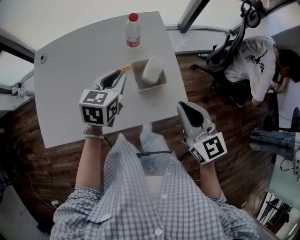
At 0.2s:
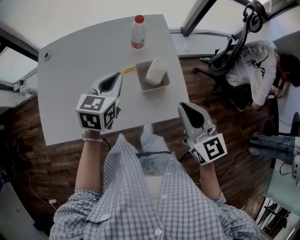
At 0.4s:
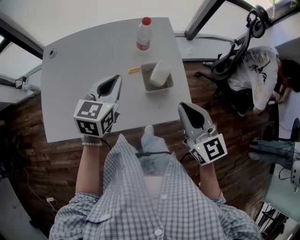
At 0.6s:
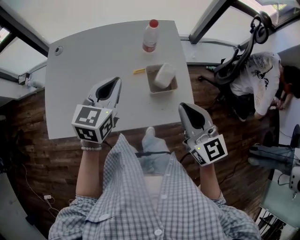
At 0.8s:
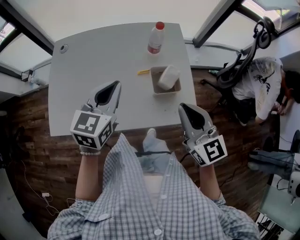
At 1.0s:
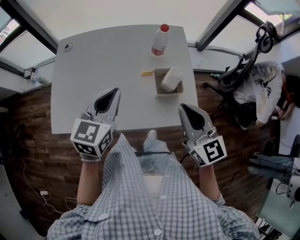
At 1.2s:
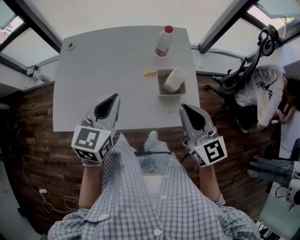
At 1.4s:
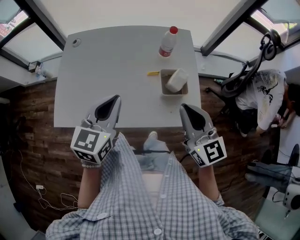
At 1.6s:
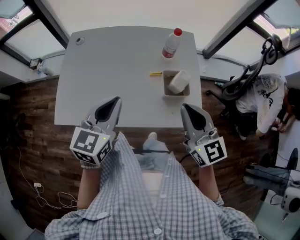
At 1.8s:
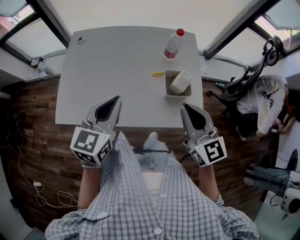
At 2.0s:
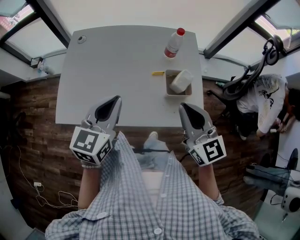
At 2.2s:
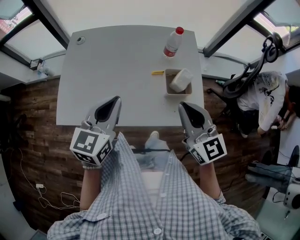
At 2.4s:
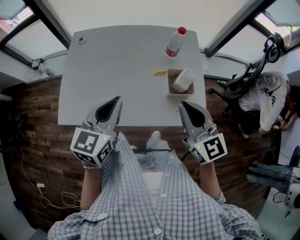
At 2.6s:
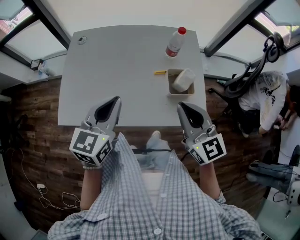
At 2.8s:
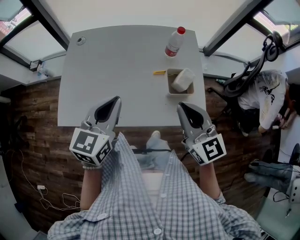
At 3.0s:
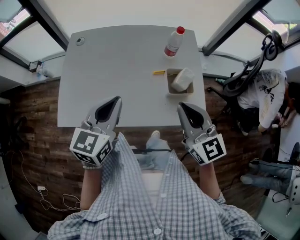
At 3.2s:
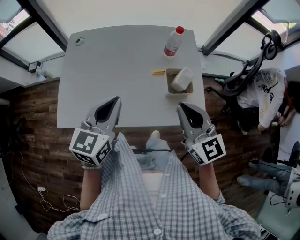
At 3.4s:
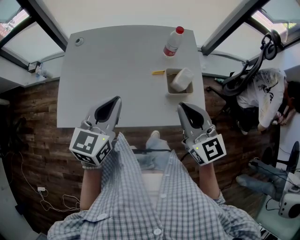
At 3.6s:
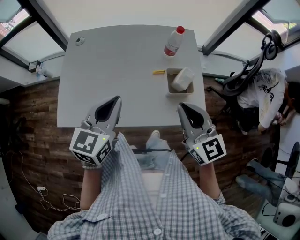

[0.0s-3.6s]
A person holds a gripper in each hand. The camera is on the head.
0.0s to 1.8s: The right gripper shifts about 10 cm to the left, while the left gripper travels to the left, backward and upward by roughly 20 cm.
1.8s to 3.6s: There are only small adjustments of the grippers.

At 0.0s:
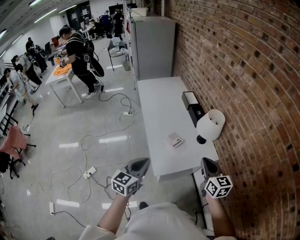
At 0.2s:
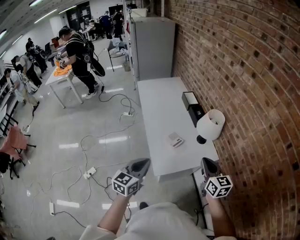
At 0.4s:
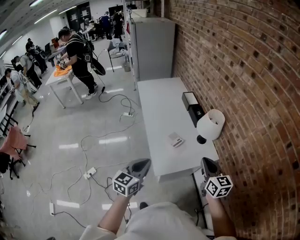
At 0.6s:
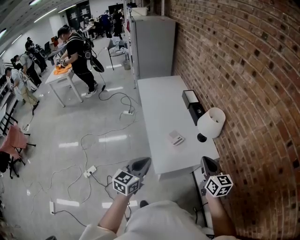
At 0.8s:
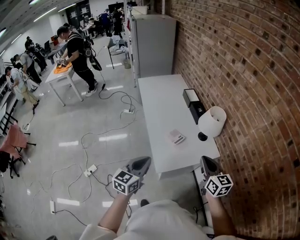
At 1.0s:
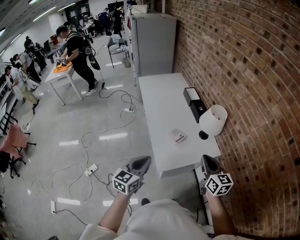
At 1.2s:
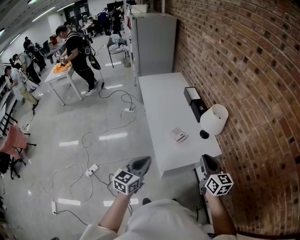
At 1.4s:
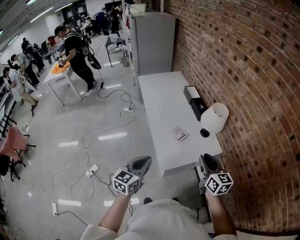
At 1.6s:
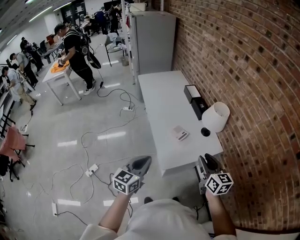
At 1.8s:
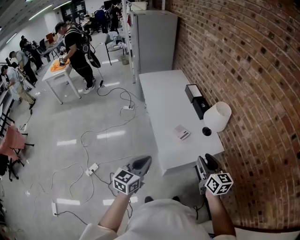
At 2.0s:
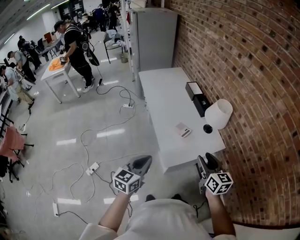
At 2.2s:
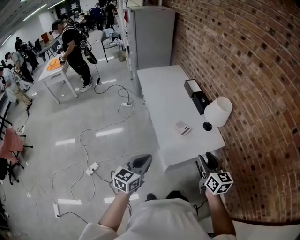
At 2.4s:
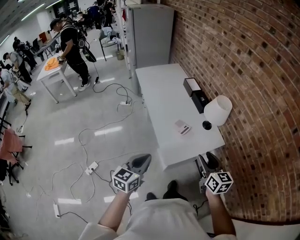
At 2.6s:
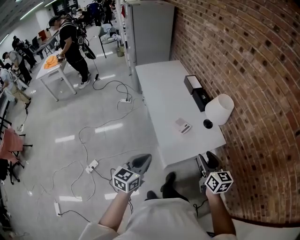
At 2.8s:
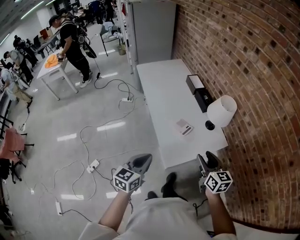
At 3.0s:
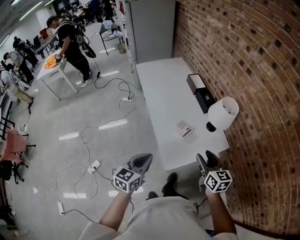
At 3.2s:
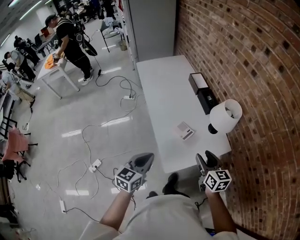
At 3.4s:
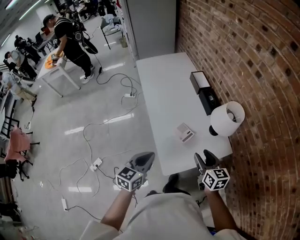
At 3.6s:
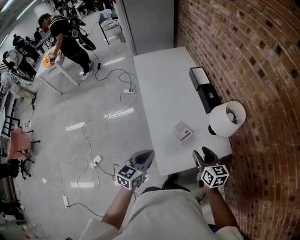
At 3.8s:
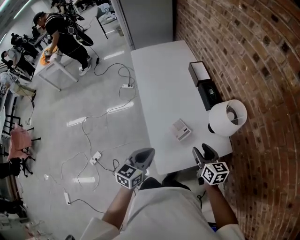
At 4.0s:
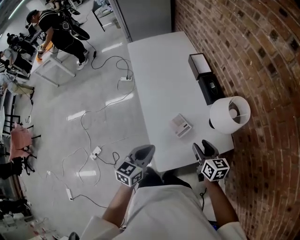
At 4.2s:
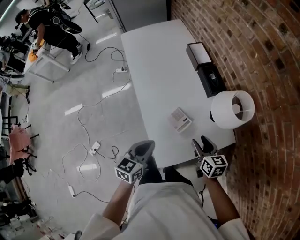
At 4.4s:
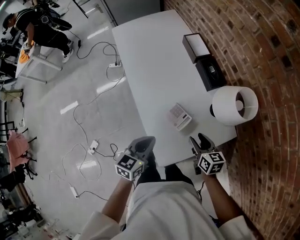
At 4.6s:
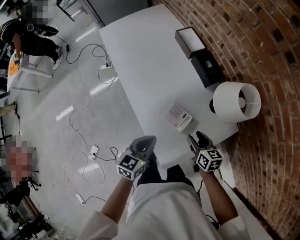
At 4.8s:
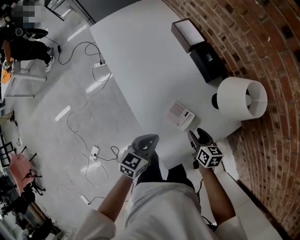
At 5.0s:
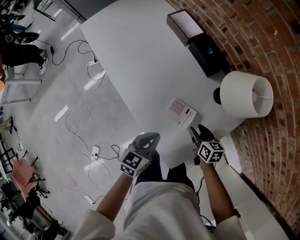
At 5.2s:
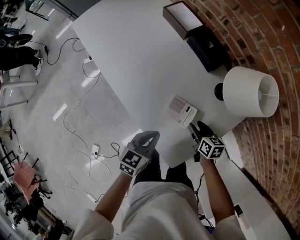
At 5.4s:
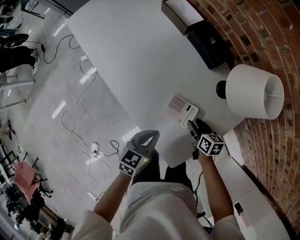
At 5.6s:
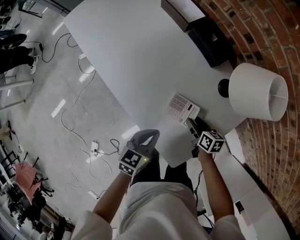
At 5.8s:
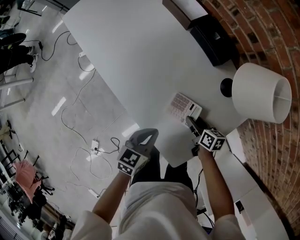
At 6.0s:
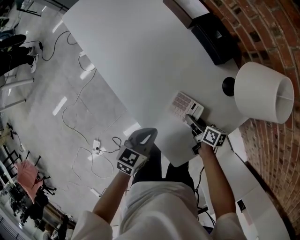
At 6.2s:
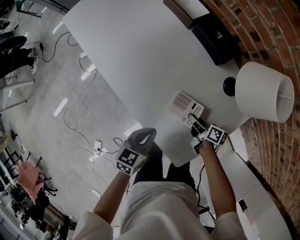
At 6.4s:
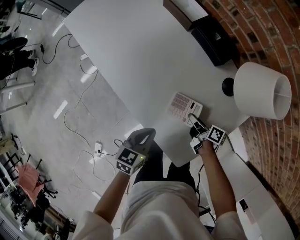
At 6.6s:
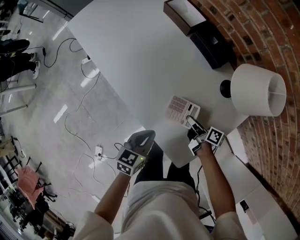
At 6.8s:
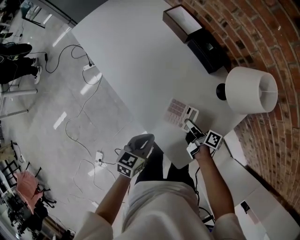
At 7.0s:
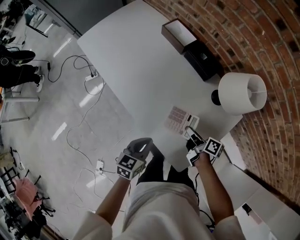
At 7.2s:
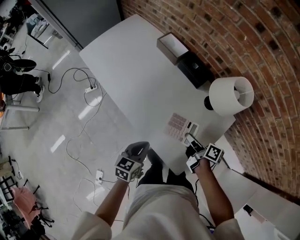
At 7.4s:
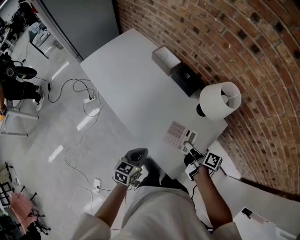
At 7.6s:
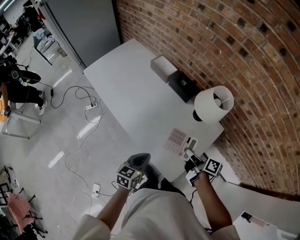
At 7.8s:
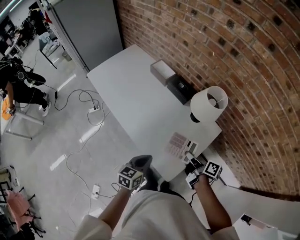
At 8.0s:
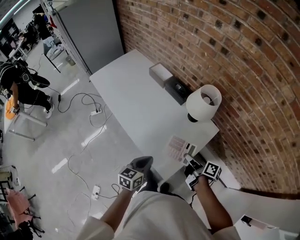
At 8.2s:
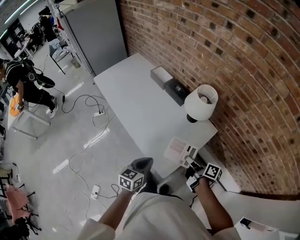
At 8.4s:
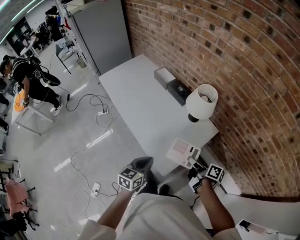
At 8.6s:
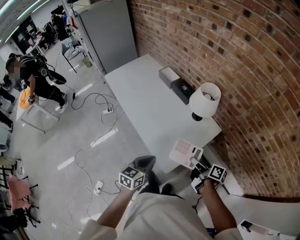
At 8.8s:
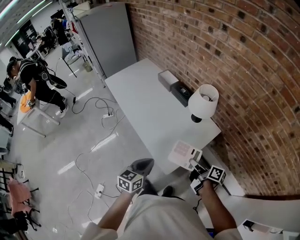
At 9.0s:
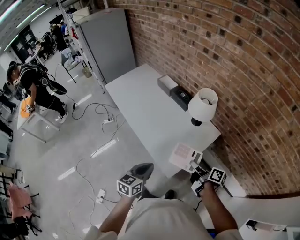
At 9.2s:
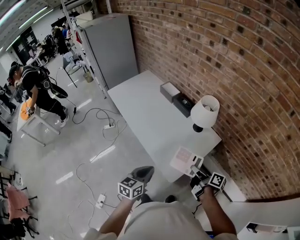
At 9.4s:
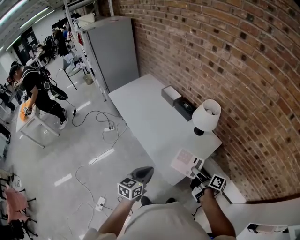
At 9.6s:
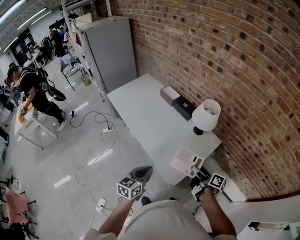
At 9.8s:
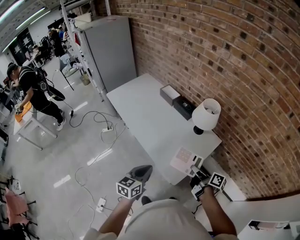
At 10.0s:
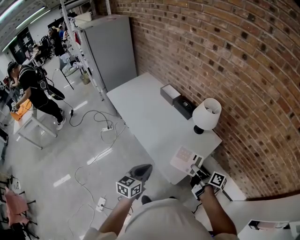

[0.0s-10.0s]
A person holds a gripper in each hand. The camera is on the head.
0.0s to 1.4s: The right gripper moves approximately 5 cm, and opens its fingers, while the left gripper shifts by about 5 cm.
1.4s to 2.8s: The left gripper moves about 5 cm. Meanwhile the right gripper is displaced downward by roughly 5 cm, and opens its fingers.
2.8s to 4.2s: Both grippers move forward and downward, roughly 25 cm.
4.2s to 5.8s: The right gripper moves downward, some 25 cm, and rotates approximately 40 degrees. The left gripper moves downward and forward, about 20 cm, and swivels about 30 degrees.
5.8s to 7.2s: The right gripper is displaced upward by about 20 cm, swivels roughly 30 degrees, and closes up, while the left gripper travels upward and to the left by roughly 10 cm.
7.2s to 8.6s: The left gripper travels backward, upward and to the right by roughly 25 cm. The right gripper heads backward, to the right and upward, covering roughly 30 cm.
8.6s to 10.0s: The grippers both shift to the left by about 10 cm.

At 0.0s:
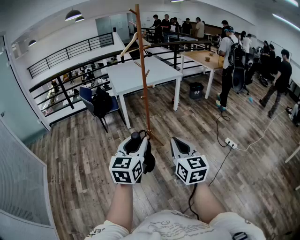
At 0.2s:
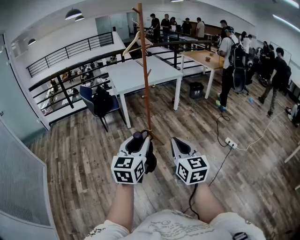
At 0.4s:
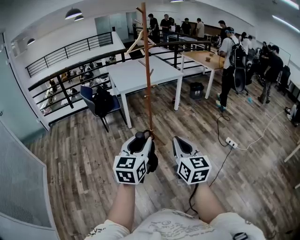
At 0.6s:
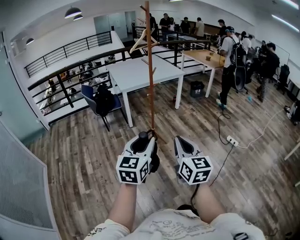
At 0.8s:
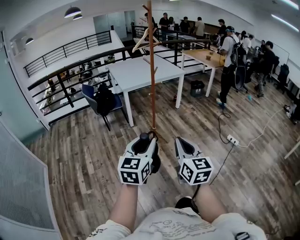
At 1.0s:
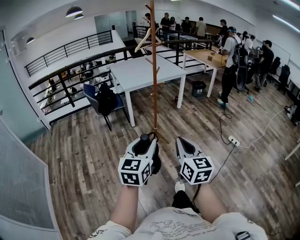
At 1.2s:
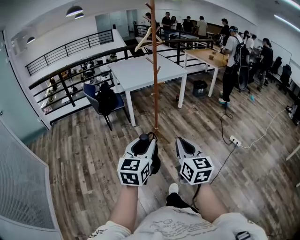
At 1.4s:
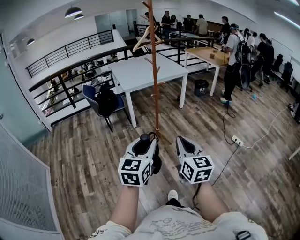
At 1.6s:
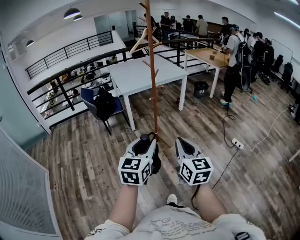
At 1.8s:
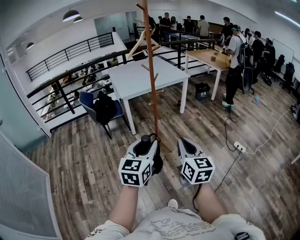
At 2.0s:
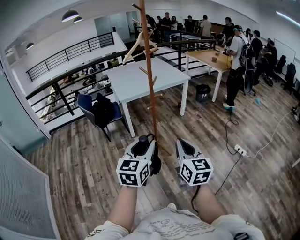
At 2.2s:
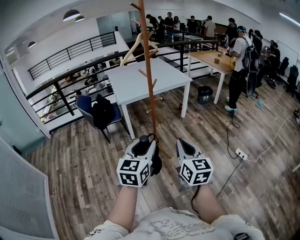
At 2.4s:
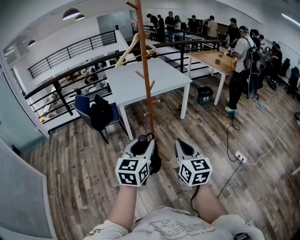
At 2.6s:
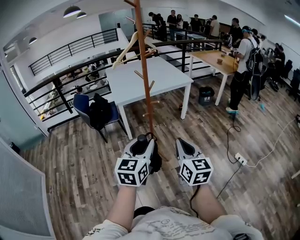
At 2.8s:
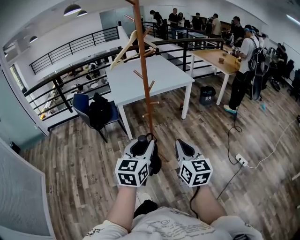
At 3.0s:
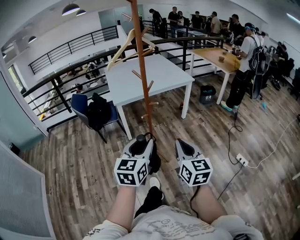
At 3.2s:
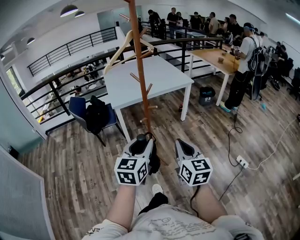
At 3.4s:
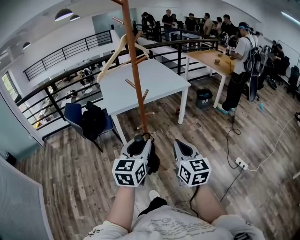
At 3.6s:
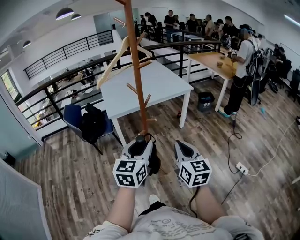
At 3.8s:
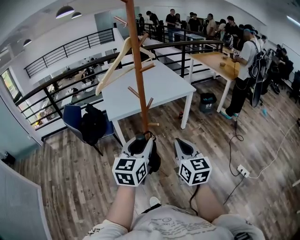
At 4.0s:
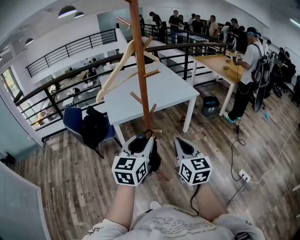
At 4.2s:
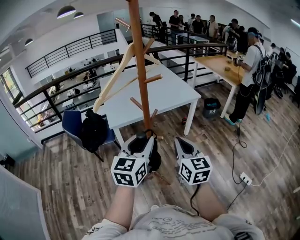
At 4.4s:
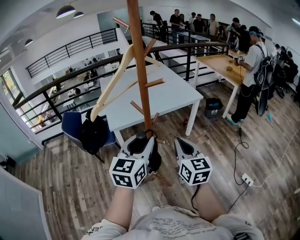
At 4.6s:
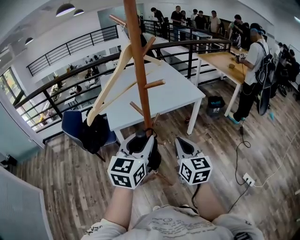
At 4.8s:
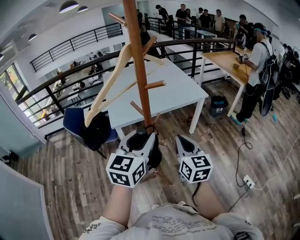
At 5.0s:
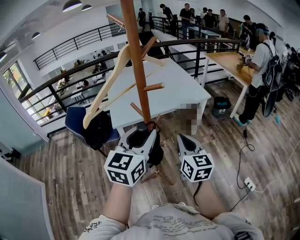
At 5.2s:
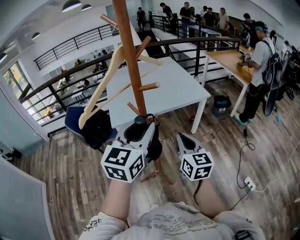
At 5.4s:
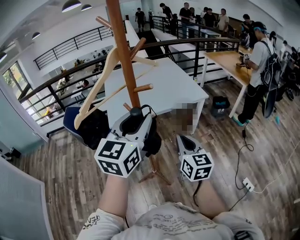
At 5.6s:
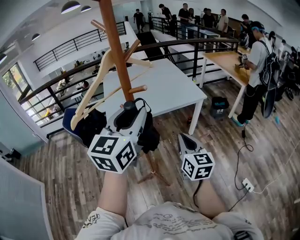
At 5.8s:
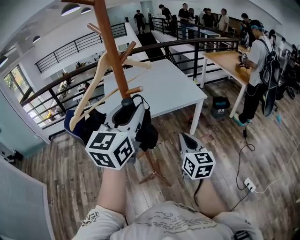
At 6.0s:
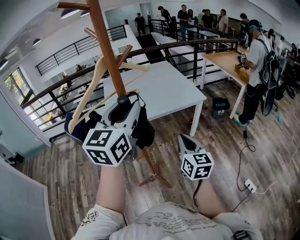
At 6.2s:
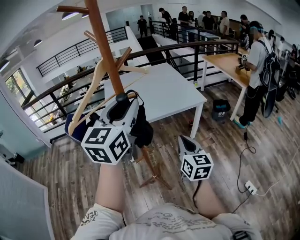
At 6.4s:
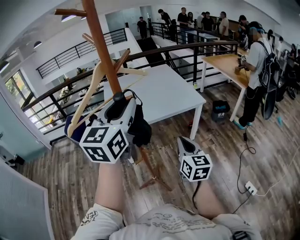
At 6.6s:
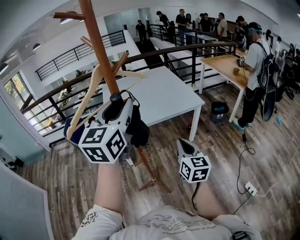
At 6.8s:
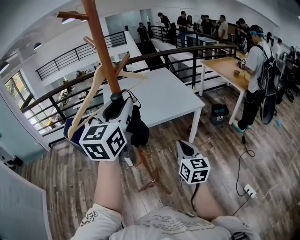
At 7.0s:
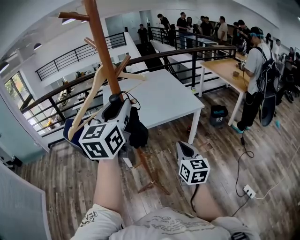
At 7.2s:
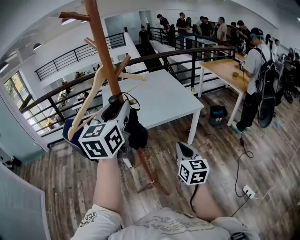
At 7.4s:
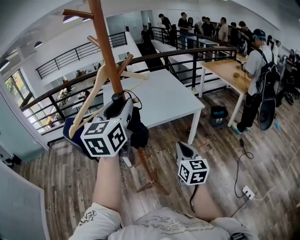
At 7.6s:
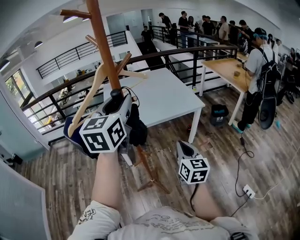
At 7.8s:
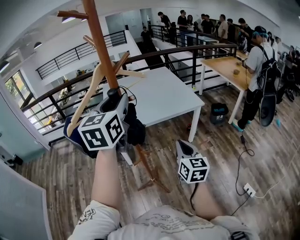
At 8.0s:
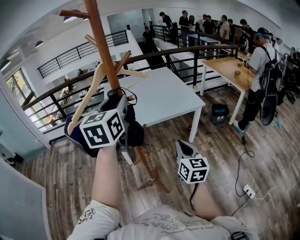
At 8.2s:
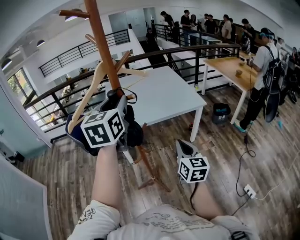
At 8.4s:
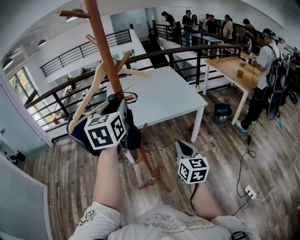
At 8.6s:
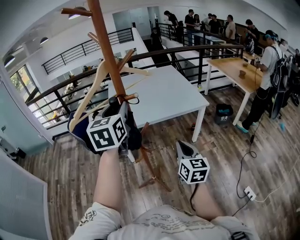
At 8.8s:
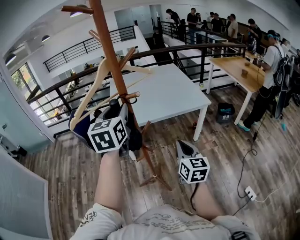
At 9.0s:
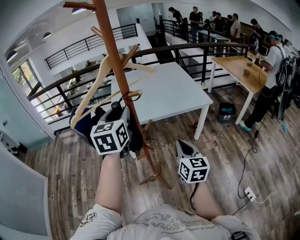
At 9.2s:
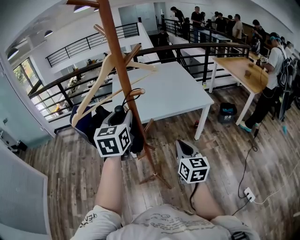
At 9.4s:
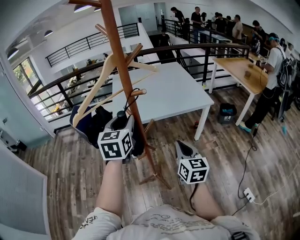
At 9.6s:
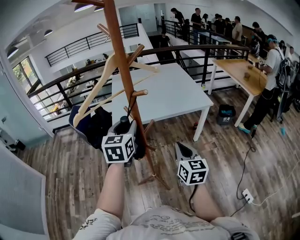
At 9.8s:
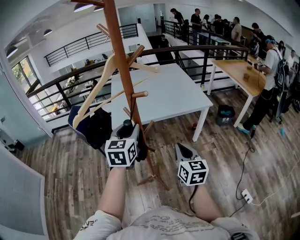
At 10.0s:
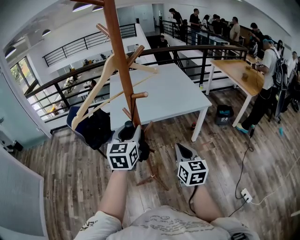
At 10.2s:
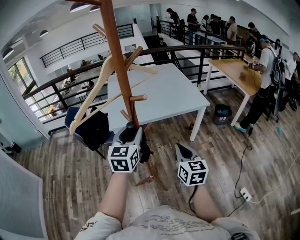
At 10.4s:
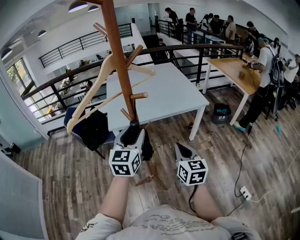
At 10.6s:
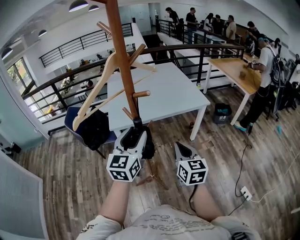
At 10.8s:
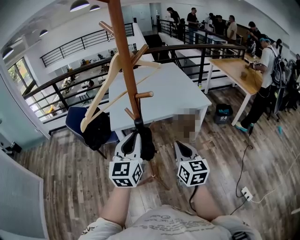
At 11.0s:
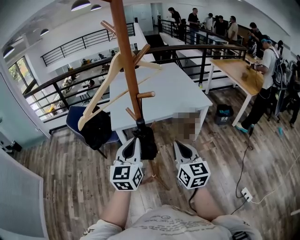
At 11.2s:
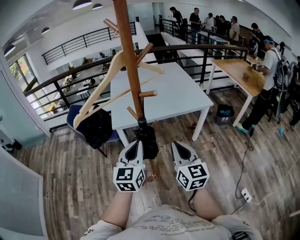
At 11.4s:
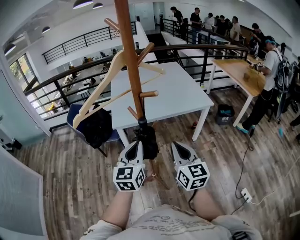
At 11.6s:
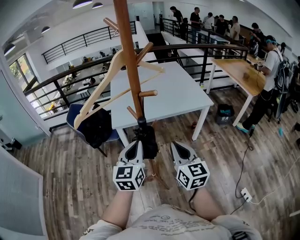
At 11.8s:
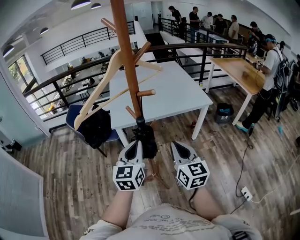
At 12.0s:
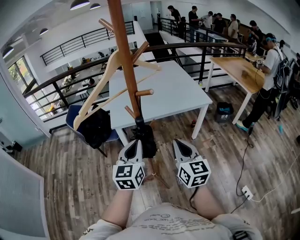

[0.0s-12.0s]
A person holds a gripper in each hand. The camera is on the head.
0.0s to 1.6s: Both grippers move forward and to the left, about 10 cm.
1.6s to 3.0s: The two grippers go approximately 30 cm forward.
3.0s to 4.4s: The grippers both shift forward by roughly 30 cm.
4.4s to 6.0s: The right gripper shifts roughly 10 cm to the right and forward, while the left gripper moves upward and forward, about 20 cm.
6.0s to 7.6s: The grippers make only small movements.
7.6s to 9.0s: The left gripper travels downward by roughly 10 cm.
9.0s to 10.4s: The left gripper shifts roughly 10 cm downward.
10.4s to 12.0s: The left gripper ends up some 5 cm from where it was, and closes its fingers.
